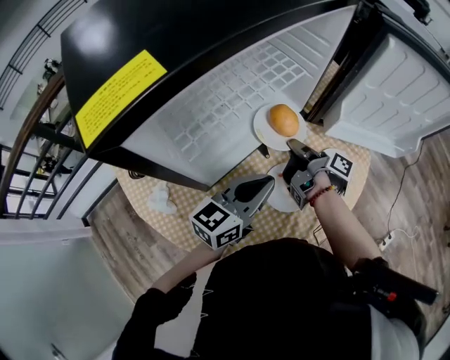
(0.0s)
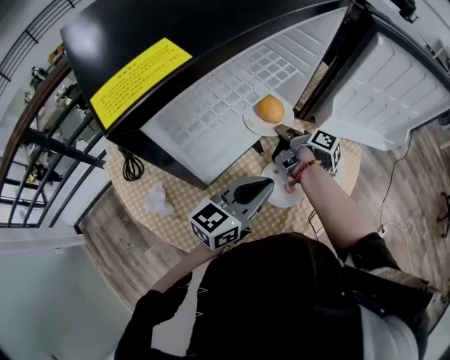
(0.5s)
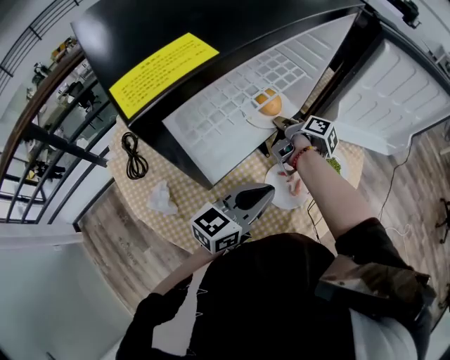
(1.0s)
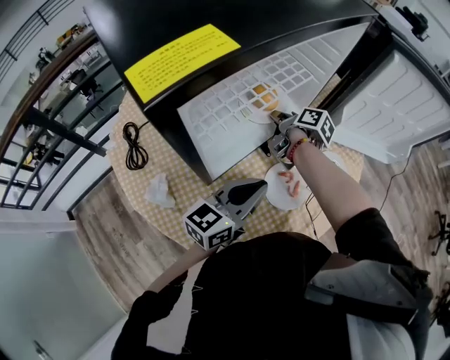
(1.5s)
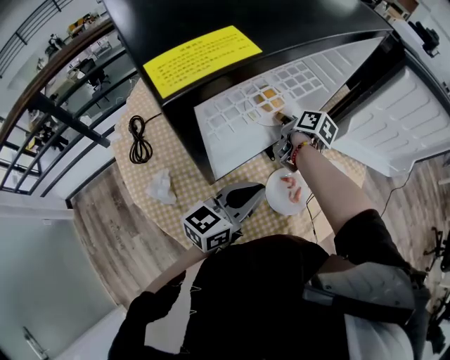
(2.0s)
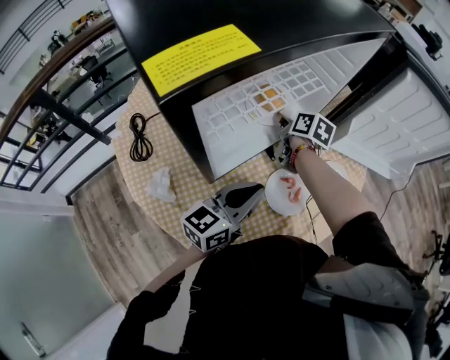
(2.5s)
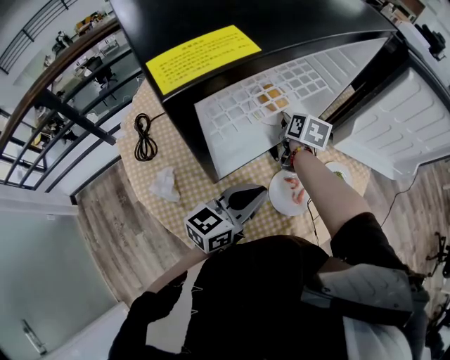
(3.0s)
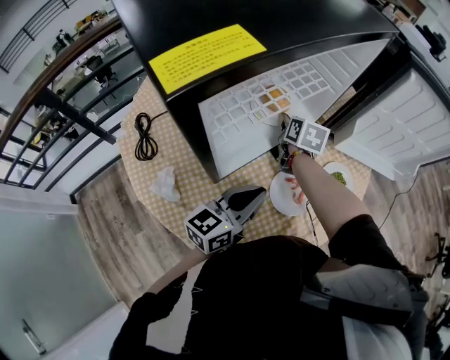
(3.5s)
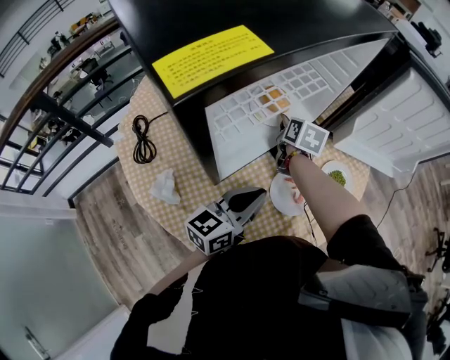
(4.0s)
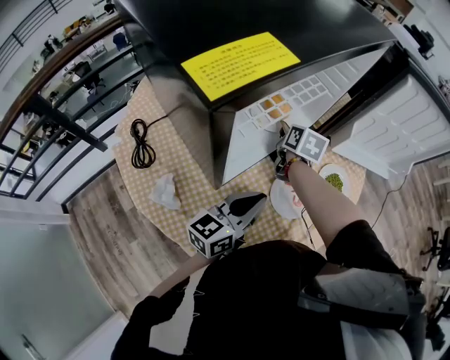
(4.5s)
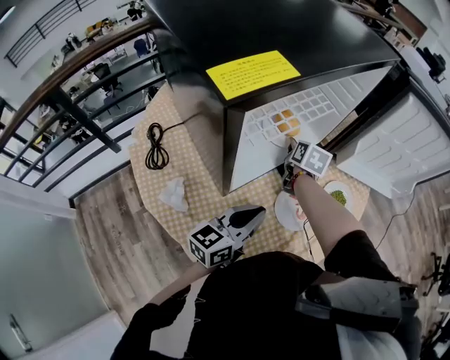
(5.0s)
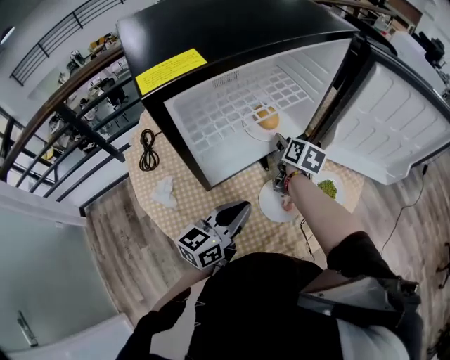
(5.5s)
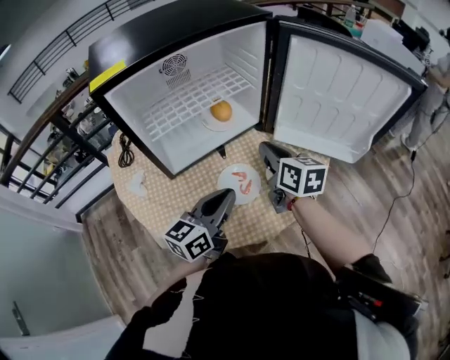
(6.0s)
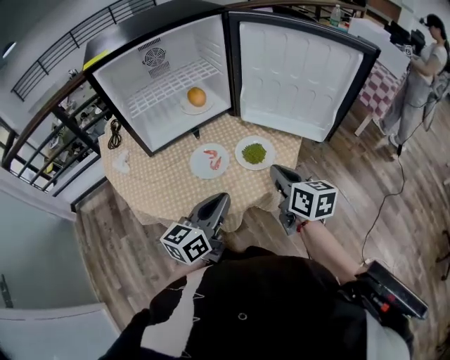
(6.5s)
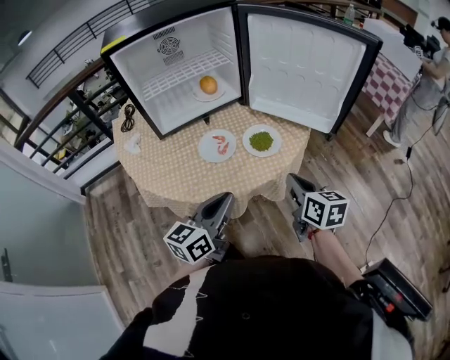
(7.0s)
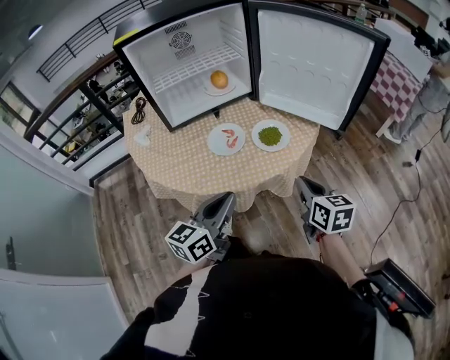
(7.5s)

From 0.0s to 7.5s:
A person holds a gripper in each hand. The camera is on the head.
From 0.0s to 2.0s: The left gripper ends up about 5 cm from where it was.
From 5.5s to 7.5s: The left gripper ends up approximately 30 cm from where it was.

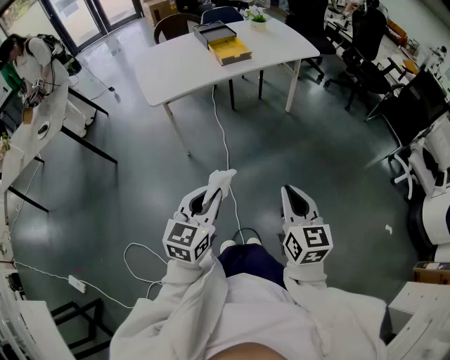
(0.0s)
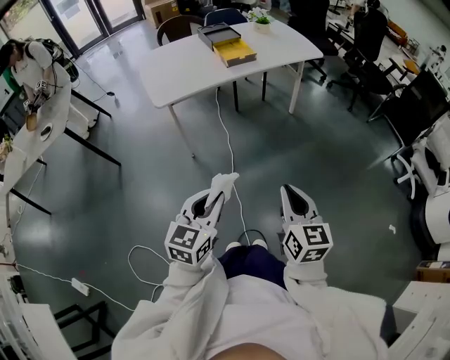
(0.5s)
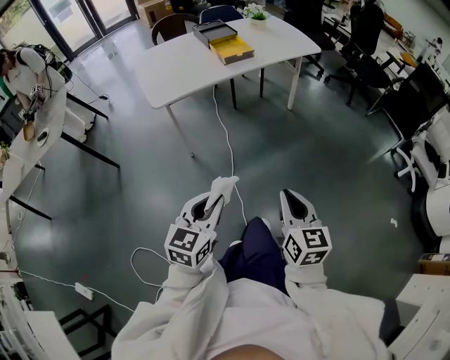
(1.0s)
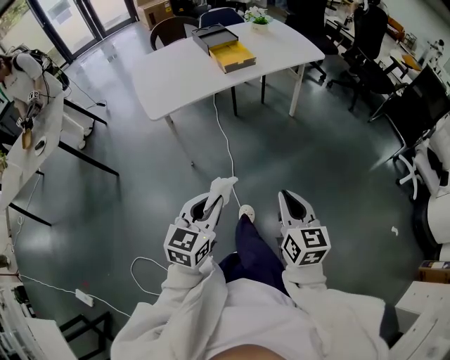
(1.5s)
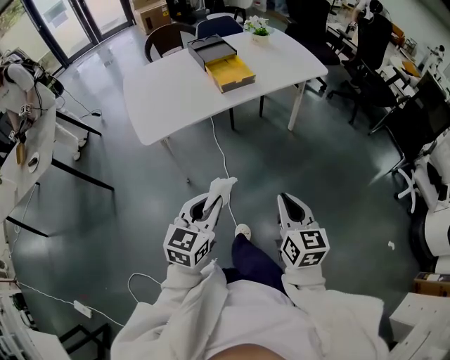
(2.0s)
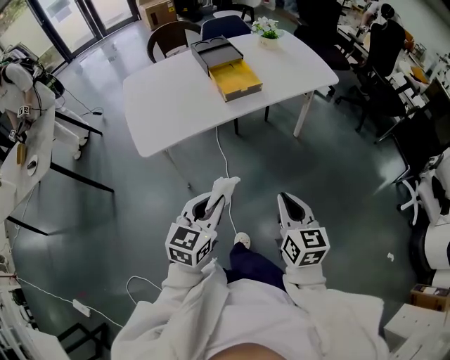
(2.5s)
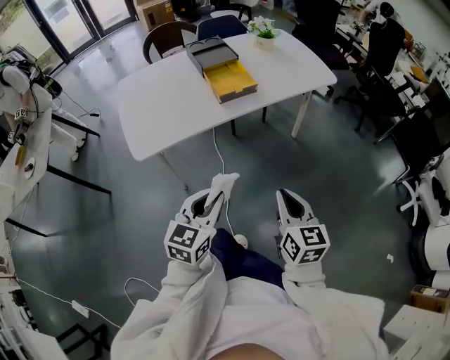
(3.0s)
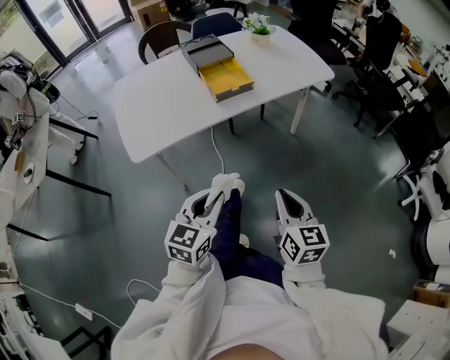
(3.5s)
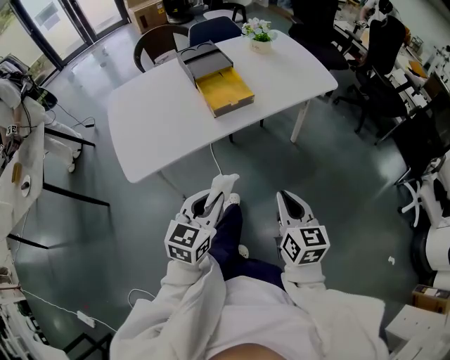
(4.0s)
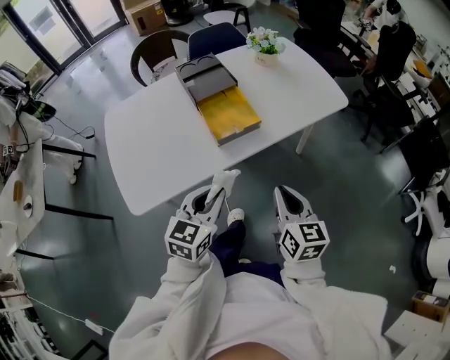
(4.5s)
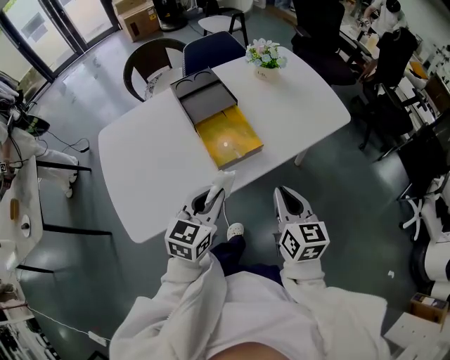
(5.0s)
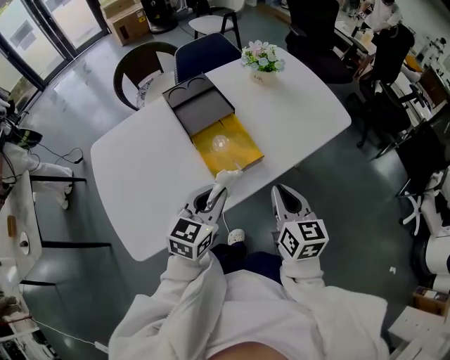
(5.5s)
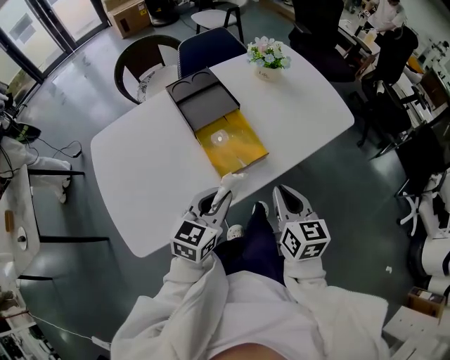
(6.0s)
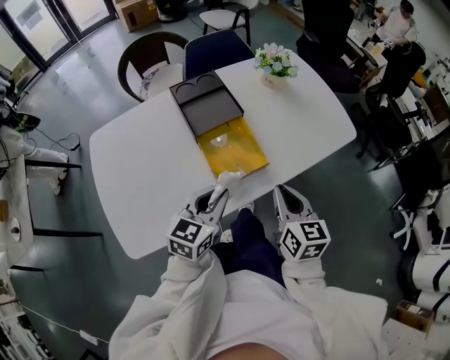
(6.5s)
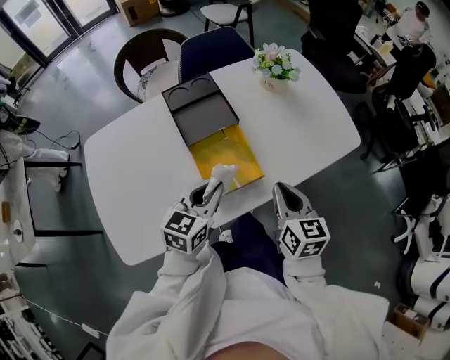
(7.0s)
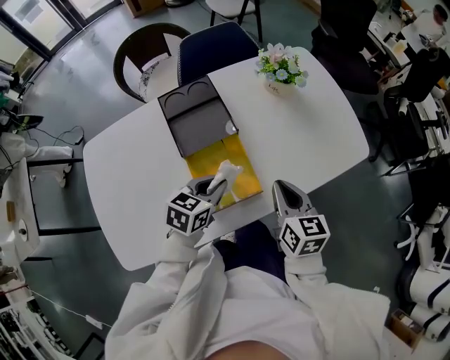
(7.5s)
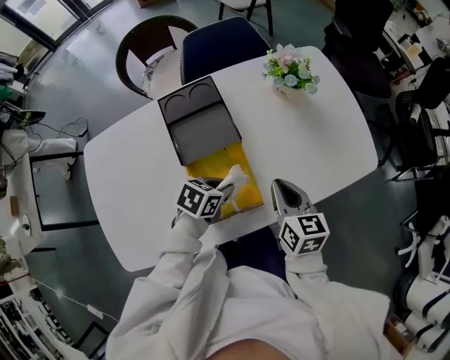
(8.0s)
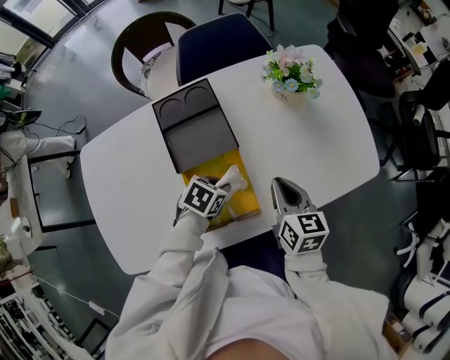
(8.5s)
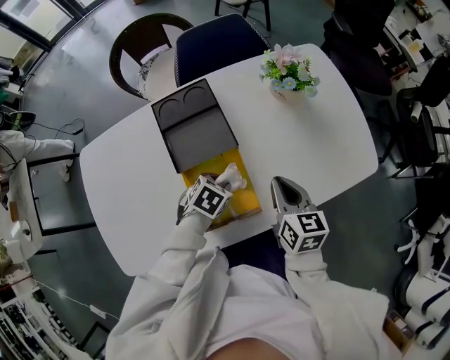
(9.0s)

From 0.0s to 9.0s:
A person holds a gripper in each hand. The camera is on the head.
From 0.0s to 2.0s: Both grippers move forward, about 20 cm.
From 2.0s to 4.5s: The grippers both shift forward by roughly 30 cm.
From 4.5s to 7.0s: The two grippers go approximately 25 cm forward.
From 7.0s to 9.0s: The left gripper heads downward and forward, covering some 20 cm, and tips its fingers downward by some 40 degrees. Meanwhile the right gripper heads forward and downward, covering about 15 cm.

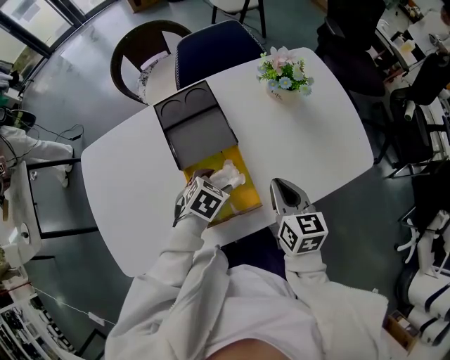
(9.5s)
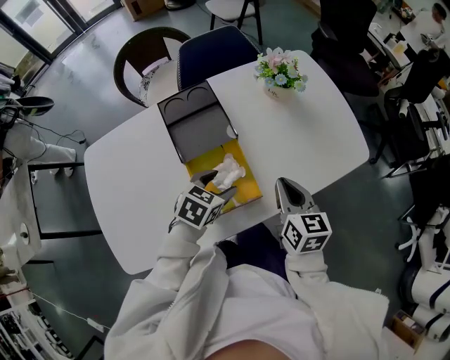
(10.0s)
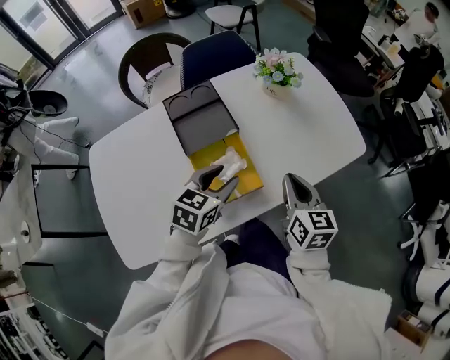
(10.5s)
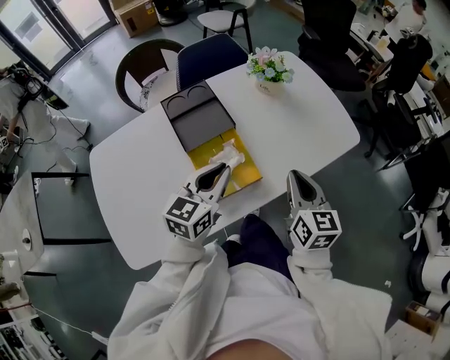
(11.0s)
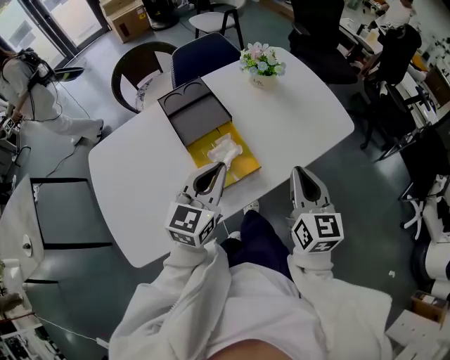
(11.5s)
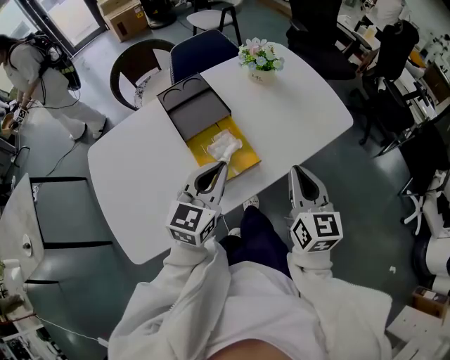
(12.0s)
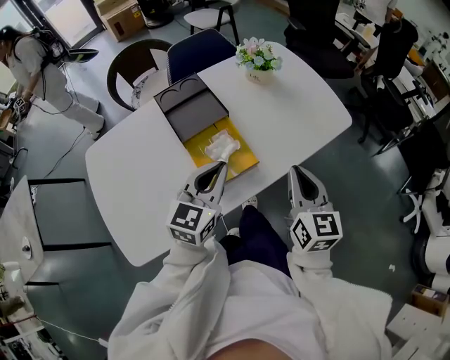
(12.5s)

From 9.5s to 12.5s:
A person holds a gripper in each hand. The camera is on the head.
From 9.5s to 11.0s: The left gripper shifts roughly 20 cm upward, points its fingers some 50 degrees further upward, and closes. Meanwhile the right gripper travels backward, upward and to the right by roughly 10 cm.
From 11.0s to 12.5s: The right gripper ends up roughly 5 cm from where it was.

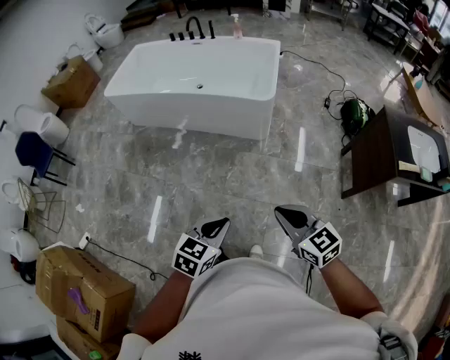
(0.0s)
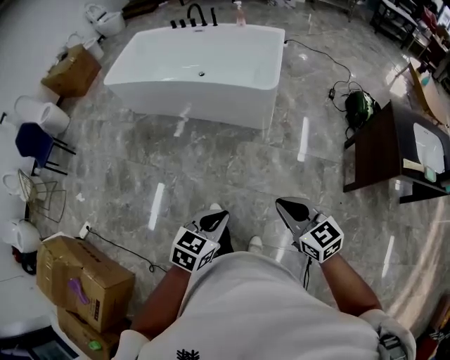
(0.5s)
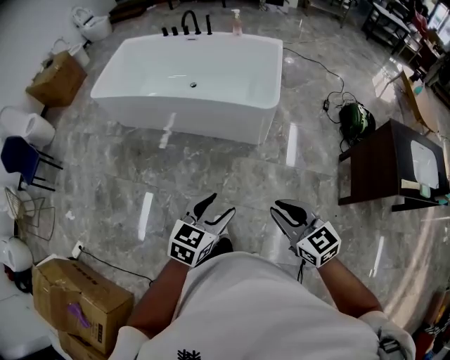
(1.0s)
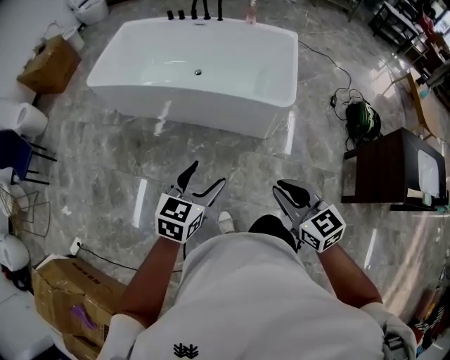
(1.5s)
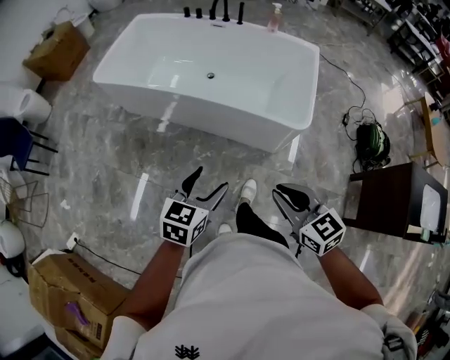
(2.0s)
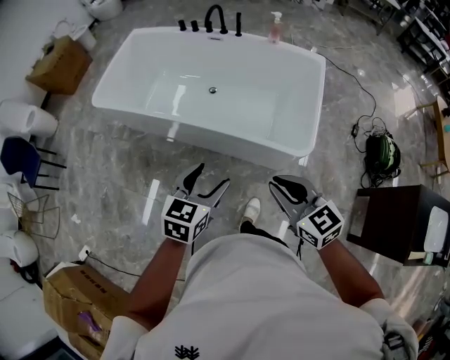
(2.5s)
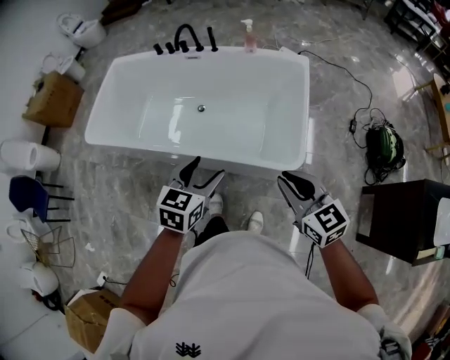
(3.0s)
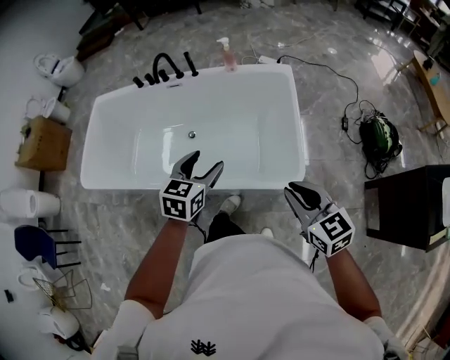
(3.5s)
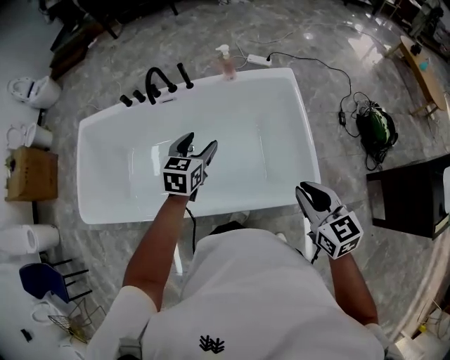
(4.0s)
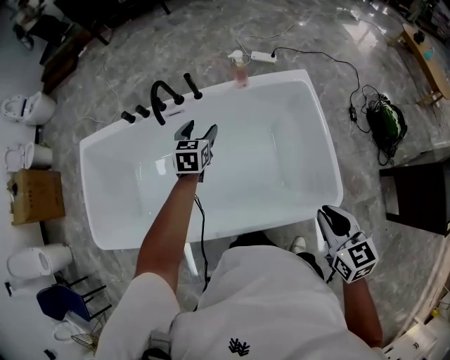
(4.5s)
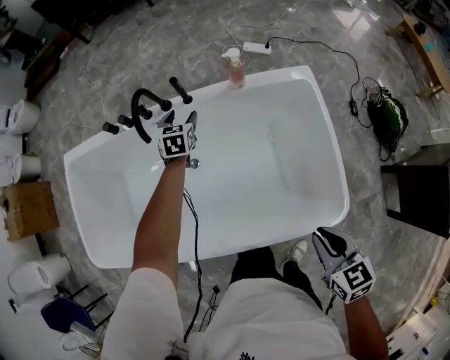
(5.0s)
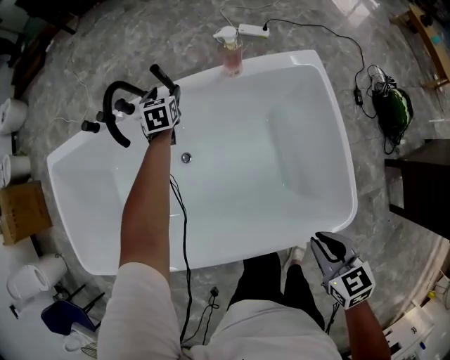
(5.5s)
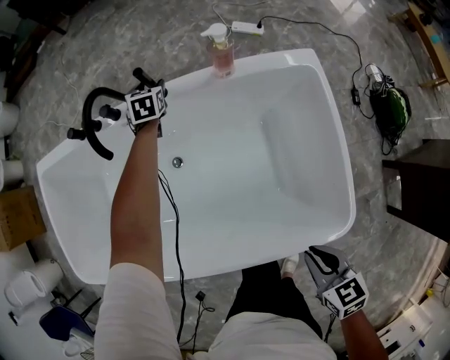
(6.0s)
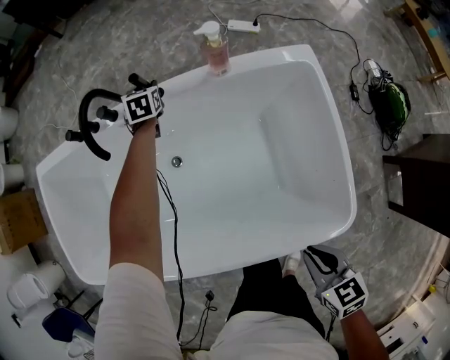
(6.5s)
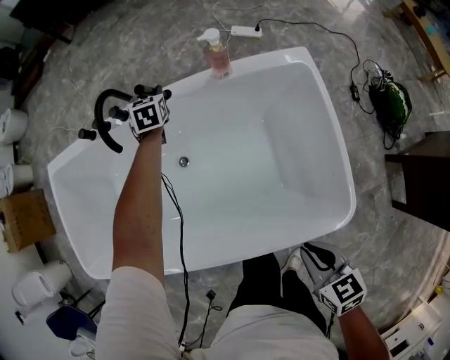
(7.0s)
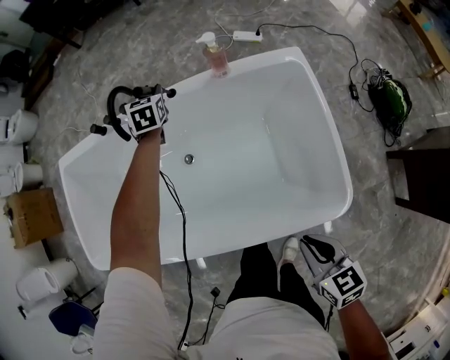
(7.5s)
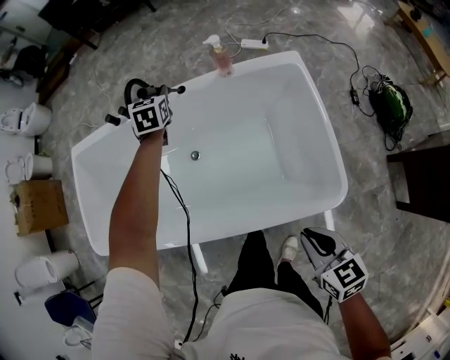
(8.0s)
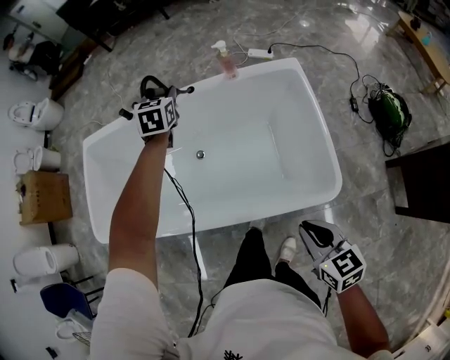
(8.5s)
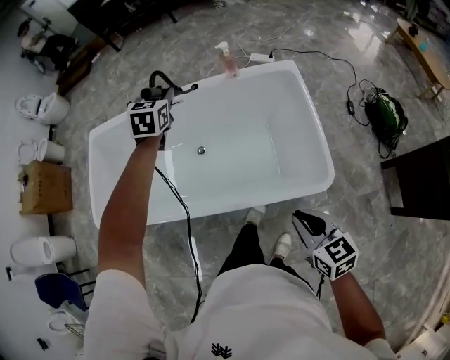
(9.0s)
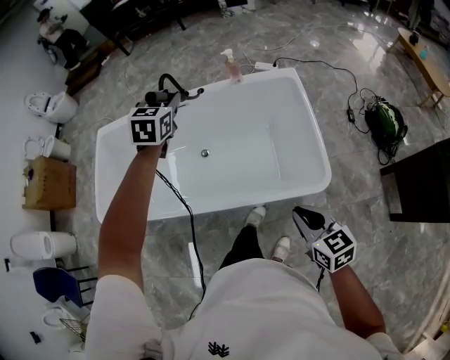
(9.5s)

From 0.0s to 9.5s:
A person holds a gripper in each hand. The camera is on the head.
From 0.0s to 2.0s: The two grippers travel together, forward and to the left, about 50 cm. The left gripper opens its fingers.
From 2.0s to 4.0s: Both grippers are carried forward, about 60 cm. The right gripper rotates some 30 degrees.
From 4.0s to 5.5s: The right gripper goes some 20 cm downward and forward, and turns by about 20 degrees; the left gripper is displaced forward and downward by roughly 50 cm.
From 5.5s to 7.5s: The left gripper goes some 10 cm upward, and closes up. The right gripper travels backward by roughly 5 cm.
From 7.5s to 9.5s: The right gripper travels backward and upward by approximately 20 cm; the left gripper travels backward and upward by approximately 40 cm.
